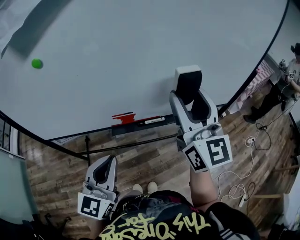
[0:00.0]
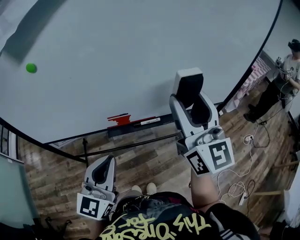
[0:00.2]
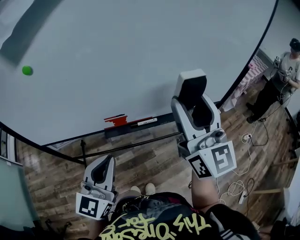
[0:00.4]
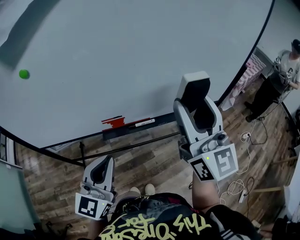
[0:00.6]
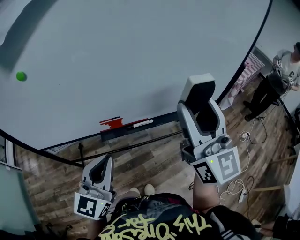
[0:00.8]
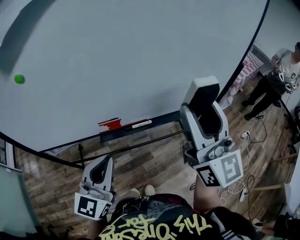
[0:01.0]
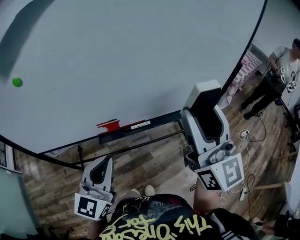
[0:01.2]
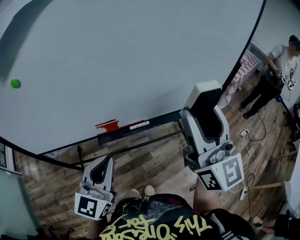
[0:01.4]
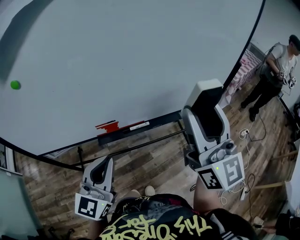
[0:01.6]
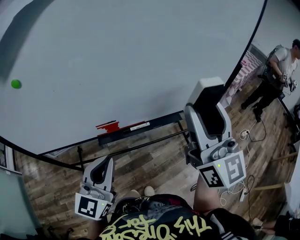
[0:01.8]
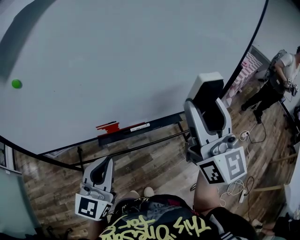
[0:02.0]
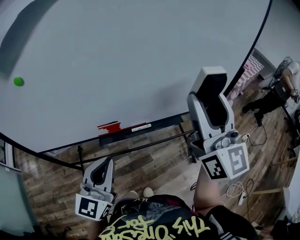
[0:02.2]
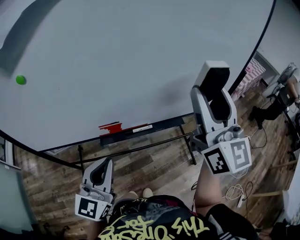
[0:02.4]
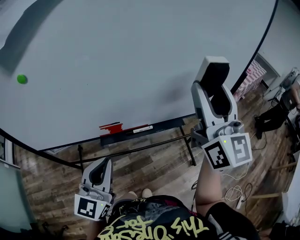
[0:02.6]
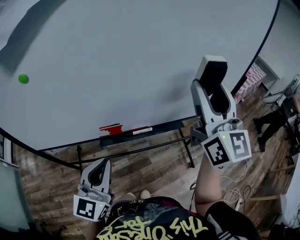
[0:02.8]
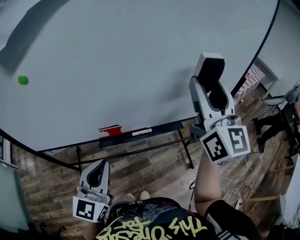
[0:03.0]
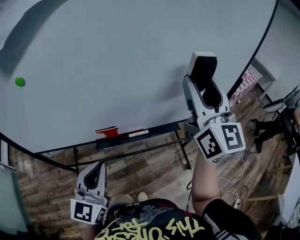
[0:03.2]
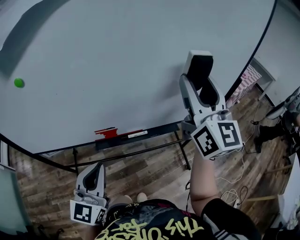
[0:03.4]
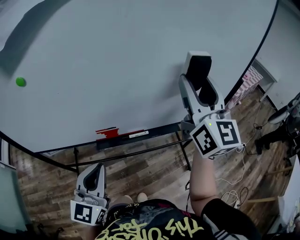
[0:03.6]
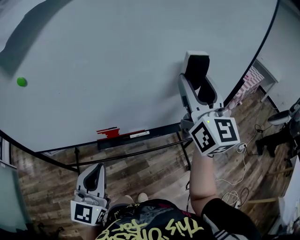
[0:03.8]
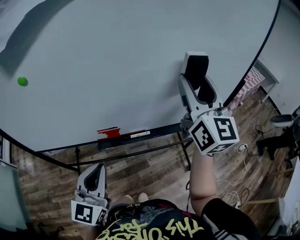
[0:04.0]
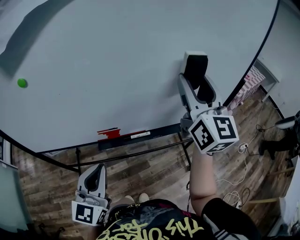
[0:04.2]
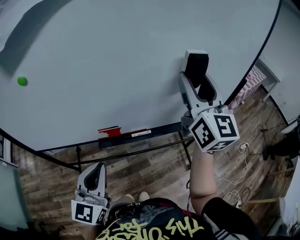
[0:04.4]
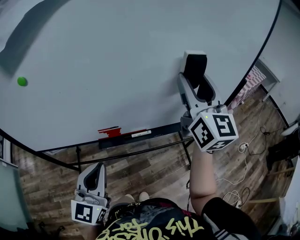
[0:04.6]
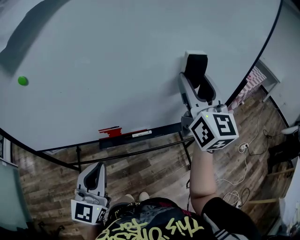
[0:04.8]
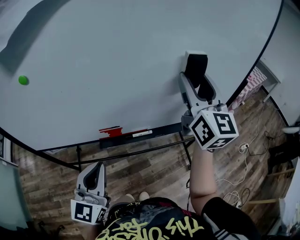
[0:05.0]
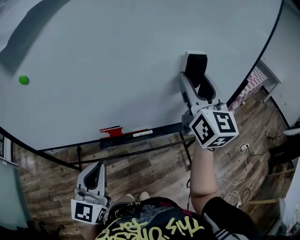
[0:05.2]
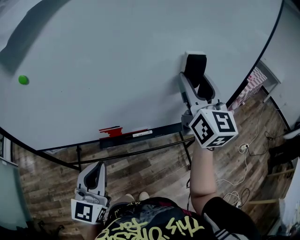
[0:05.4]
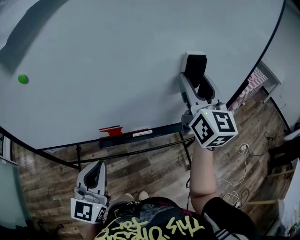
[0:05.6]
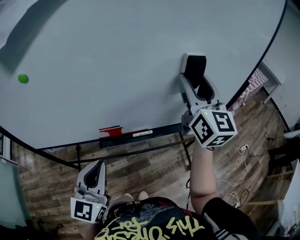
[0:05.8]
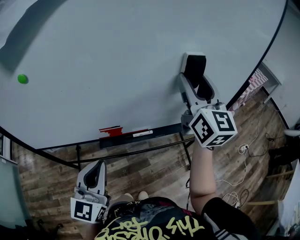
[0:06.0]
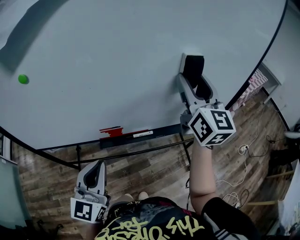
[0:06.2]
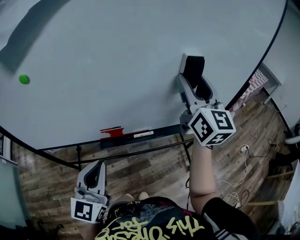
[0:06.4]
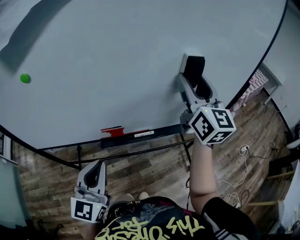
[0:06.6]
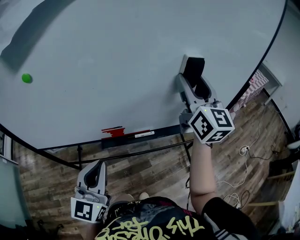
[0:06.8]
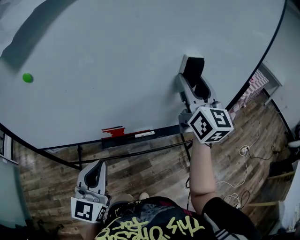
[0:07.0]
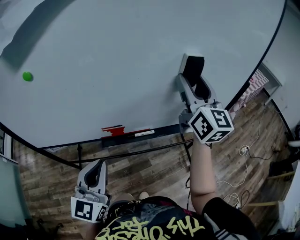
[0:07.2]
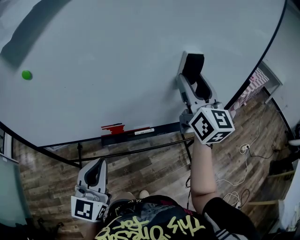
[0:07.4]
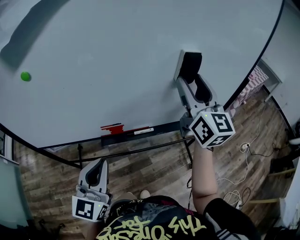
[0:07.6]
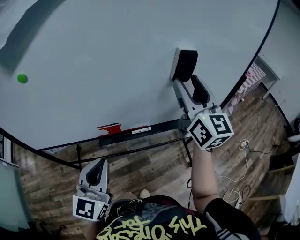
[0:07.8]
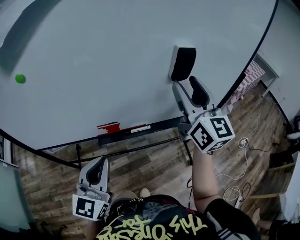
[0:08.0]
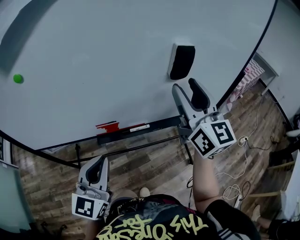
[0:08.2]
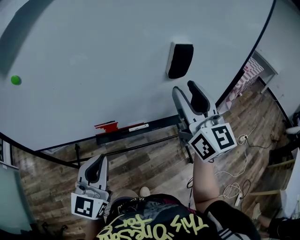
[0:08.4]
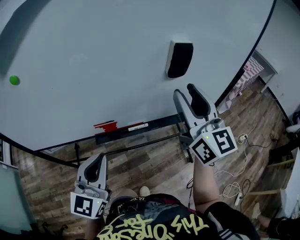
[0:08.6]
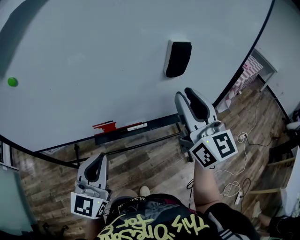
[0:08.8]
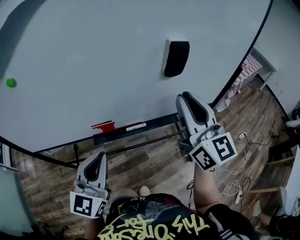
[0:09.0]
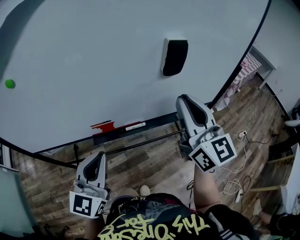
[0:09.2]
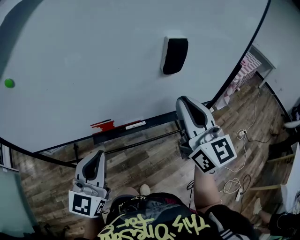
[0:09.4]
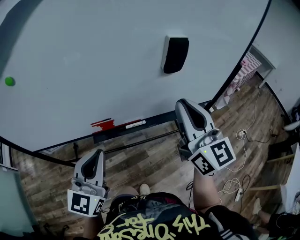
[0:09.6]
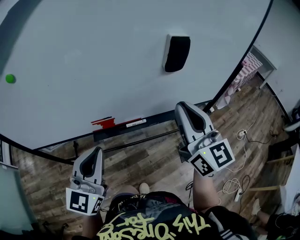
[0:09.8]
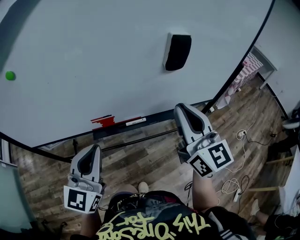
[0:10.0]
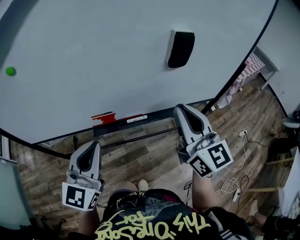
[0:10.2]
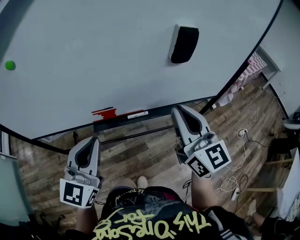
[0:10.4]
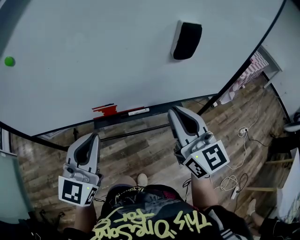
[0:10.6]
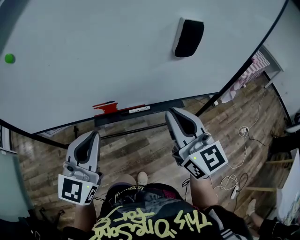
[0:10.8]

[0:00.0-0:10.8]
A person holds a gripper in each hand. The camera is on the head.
0:00.0 to 0:01.6: The right gripper heads to the right, covering some 10 cm.
0:01.6 to 0:03.0: The right gripper is displaced forward by about 10 cm.
0:03.0 to 0:04.6: The right gripper moves about 5 cm.
0:04.6 to 0:07.8: There are only small adjustments of the grippers.
0:07.8 to 0:09.2: The right gripper heads backward, covering approximately 5 cm, and closes.
0:09.2 to 0:10.8: The right gripper is displaced downward and to the left by some 10 cm.

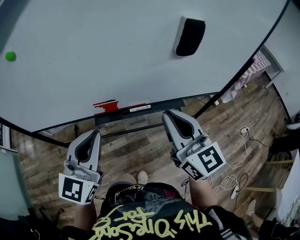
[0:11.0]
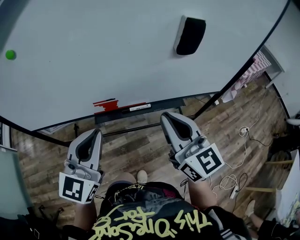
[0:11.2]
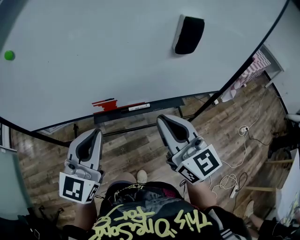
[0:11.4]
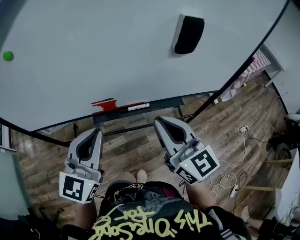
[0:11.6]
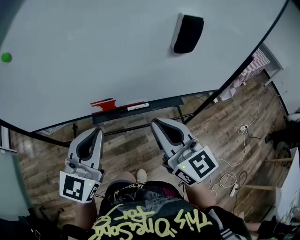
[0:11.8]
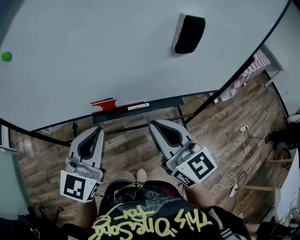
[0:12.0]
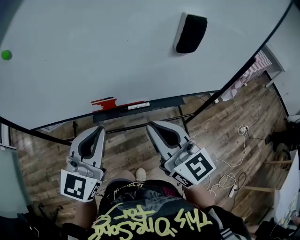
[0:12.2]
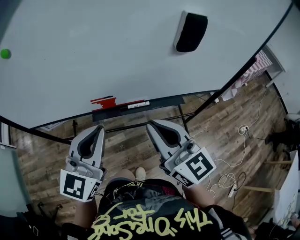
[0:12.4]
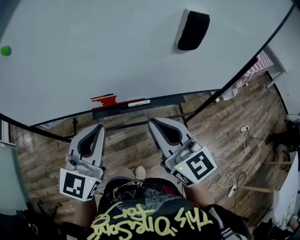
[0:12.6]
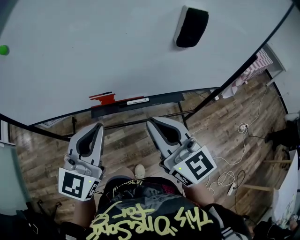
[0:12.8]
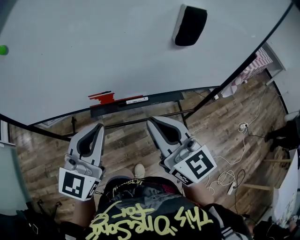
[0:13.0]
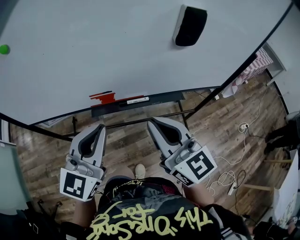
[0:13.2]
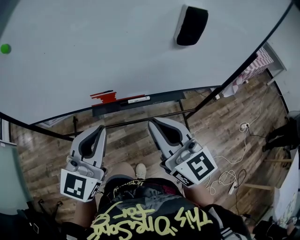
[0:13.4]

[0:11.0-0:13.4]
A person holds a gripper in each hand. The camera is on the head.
0:11.0 to 0:12.2: The right gripper changes place by about 5 cm.
0:12.2 to 0:13.4: The grippers stay close to where they were, moving slightly.

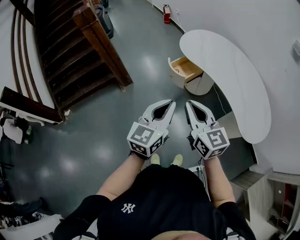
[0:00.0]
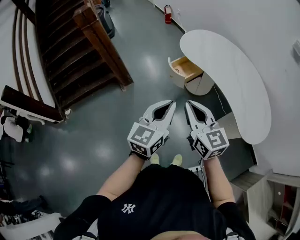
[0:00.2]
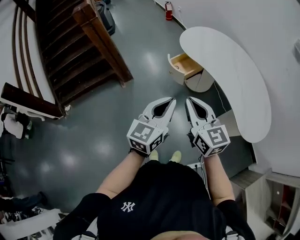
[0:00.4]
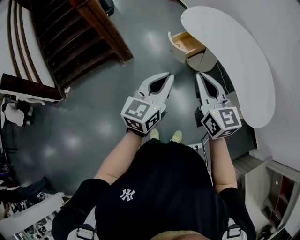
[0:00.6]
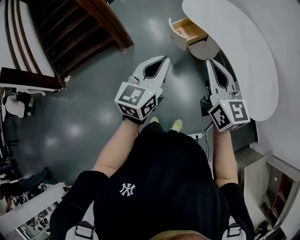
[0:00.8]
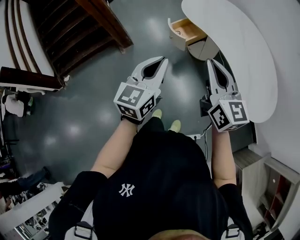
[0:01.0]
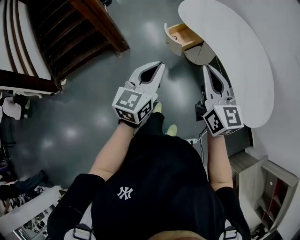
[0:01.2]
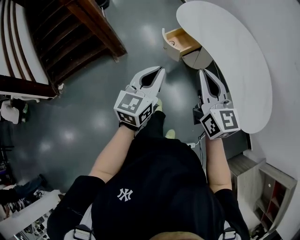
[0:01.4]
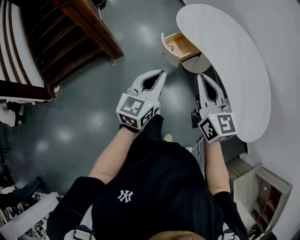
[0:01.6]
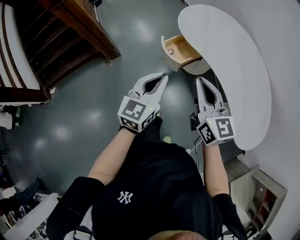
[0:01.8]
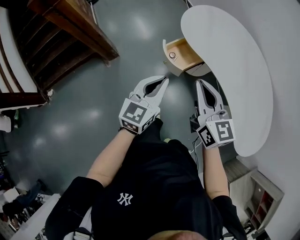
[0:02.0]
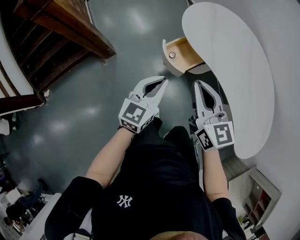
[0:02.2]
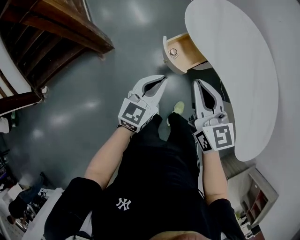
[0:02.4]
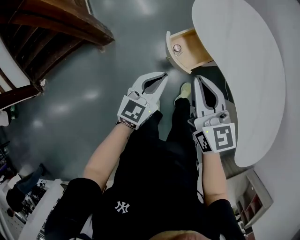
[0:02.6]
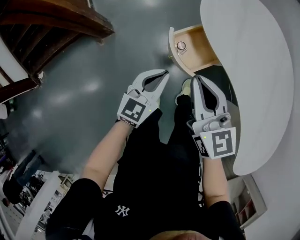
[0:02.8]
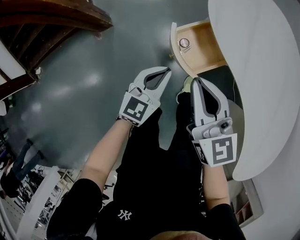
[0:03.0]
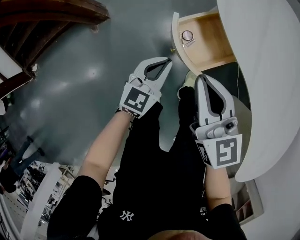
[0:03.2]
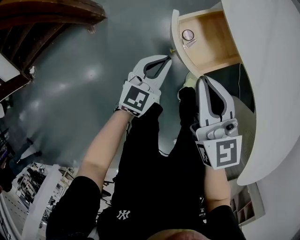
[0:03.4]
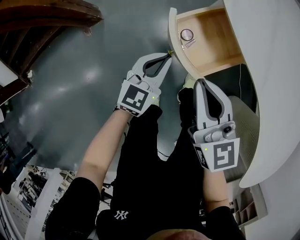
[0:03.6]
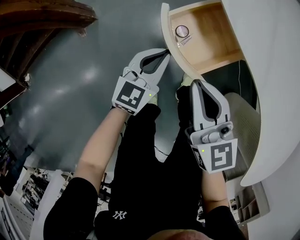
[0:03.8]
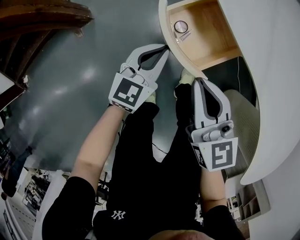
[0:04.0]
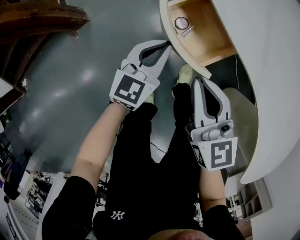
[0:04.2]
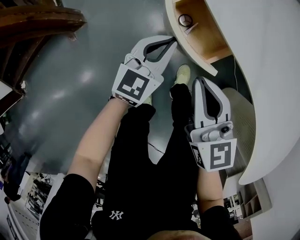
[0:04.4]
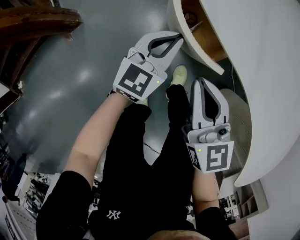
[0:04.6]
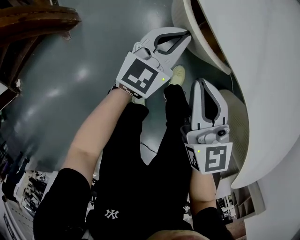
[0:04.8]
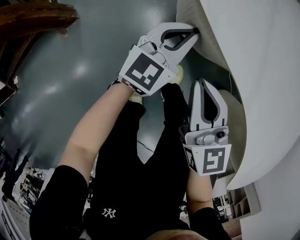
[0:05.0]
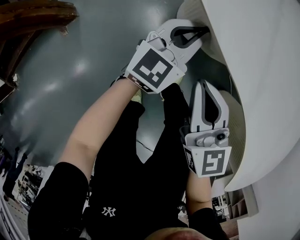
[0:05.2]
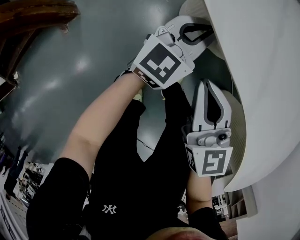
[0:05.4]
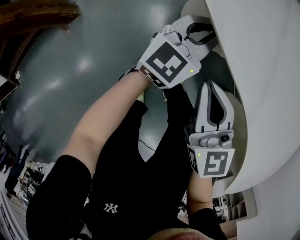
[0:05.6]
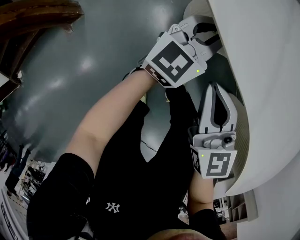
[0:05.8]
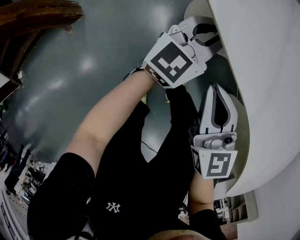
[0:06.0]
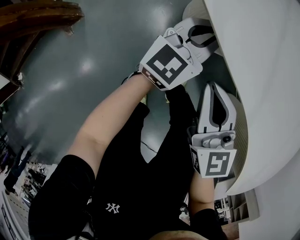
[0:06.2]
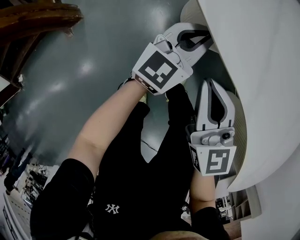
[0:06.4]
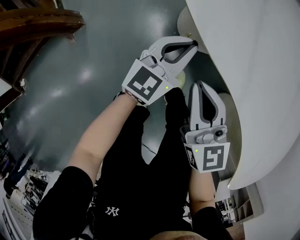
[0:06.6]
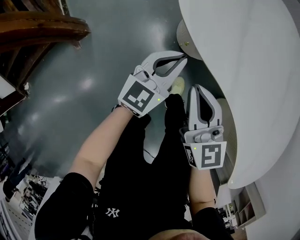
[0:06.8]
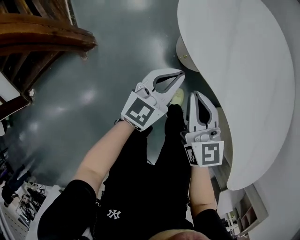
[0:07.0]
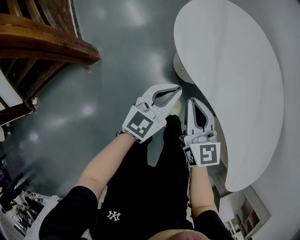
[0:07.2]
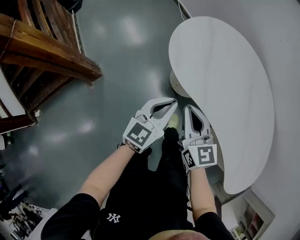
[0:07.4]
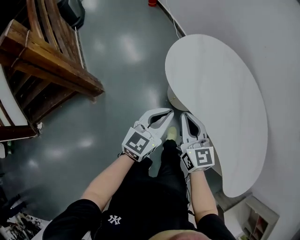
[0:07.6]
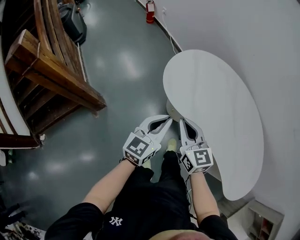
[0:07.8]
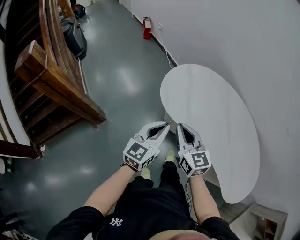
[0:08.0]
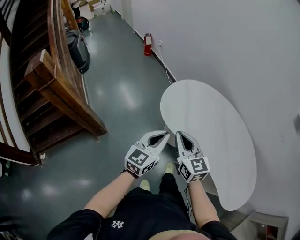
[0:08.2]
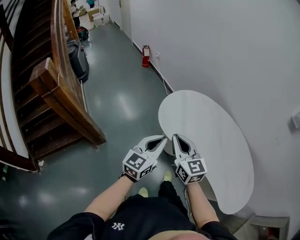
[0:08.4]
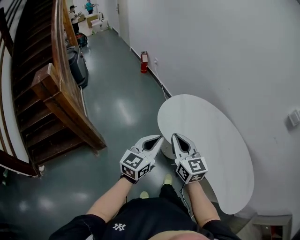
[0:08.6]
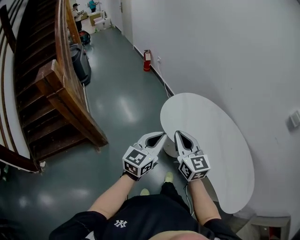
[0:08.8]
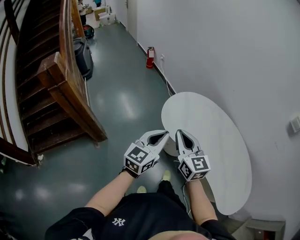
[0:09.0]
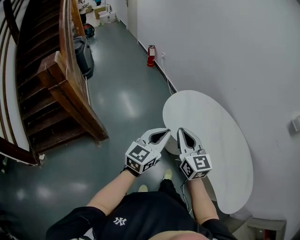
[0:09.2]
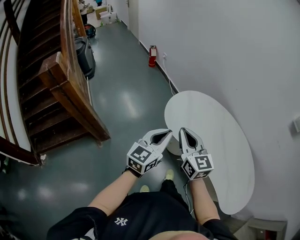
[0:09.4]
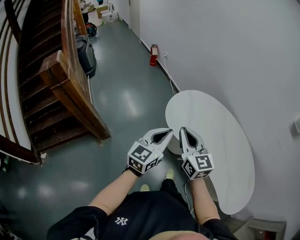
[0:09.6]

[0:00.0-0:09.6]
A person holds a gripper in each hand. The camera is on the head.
0:00.0 to 0:01.6: The left gripper shifts some 15 cm forward and downward. Meanwhile the right gripper is displaced forward and to the right by some 15 cm.
0:01.6 to 0:03.2: The left gripper travels downward and forward by approximately 50 cm. The right gripper heads forward and downward, covering approximately 40 cm.
0:03.2 to 0:04.8: The left gripper heads forward, to the right and downward, covering some 15 cm, while the right gripper goes about 15 cm downward and to the right.
0:04.8 to 0:06.4: The left gripper shifts by some 5 cm.
0:06.4 to 0:08.0: The left gripper shifts some 40 cm upward and backward, while the right gripper travels upward by approximately 35 cm.
0:08.0 to 0:09.6: The two grippers go roughly 10 cm upward.

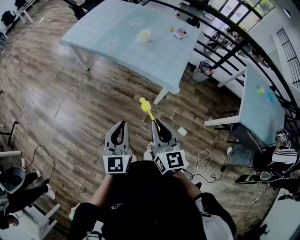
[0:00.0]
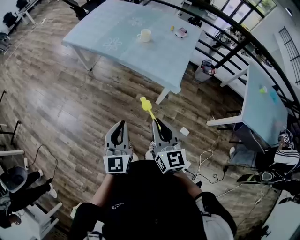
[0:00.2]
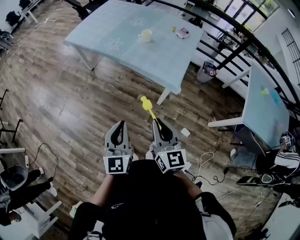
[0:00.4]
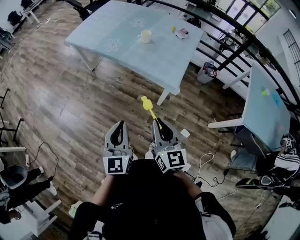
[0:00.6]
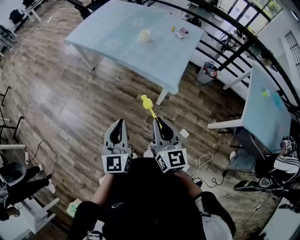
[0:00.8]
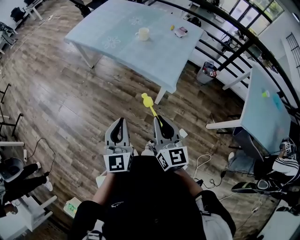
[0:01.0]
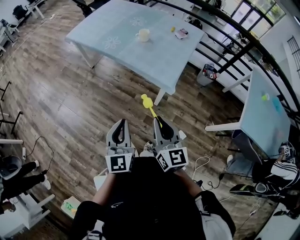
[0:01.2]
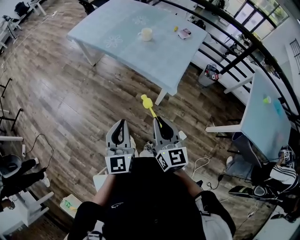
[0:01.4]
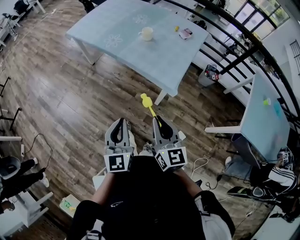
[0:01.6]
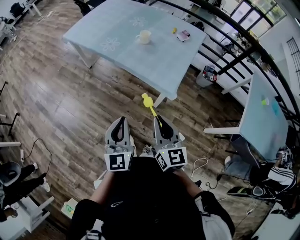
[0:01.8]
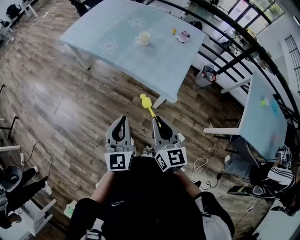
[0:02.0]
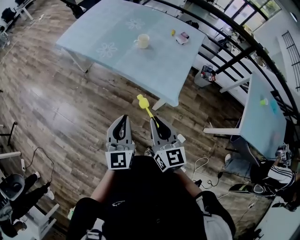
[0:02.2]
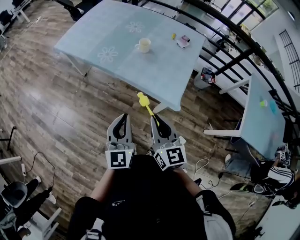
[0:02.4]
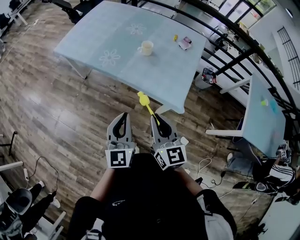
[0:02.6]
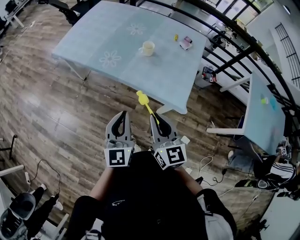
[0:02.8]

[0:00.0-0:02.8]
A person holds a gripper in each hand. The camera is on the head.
0:00.0 to 0:01.4: The grippers both shift to the right by some 10 cm.
0:01.4 to 0:02.8: The left gripper travels forward by approximately 25 cm; the right gripper moves forward and to the left, about 25 cm.
